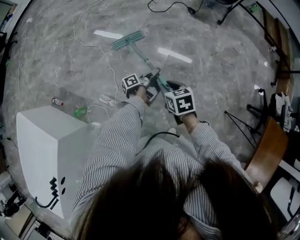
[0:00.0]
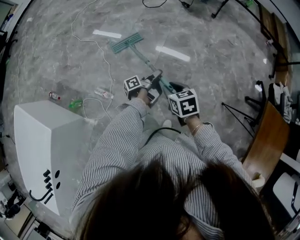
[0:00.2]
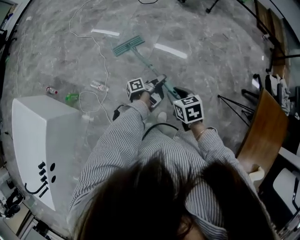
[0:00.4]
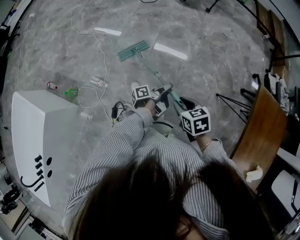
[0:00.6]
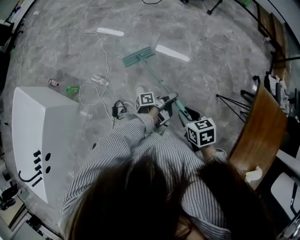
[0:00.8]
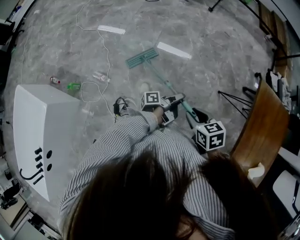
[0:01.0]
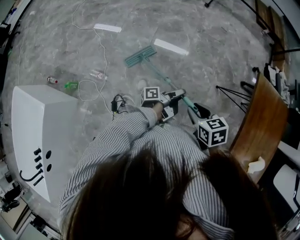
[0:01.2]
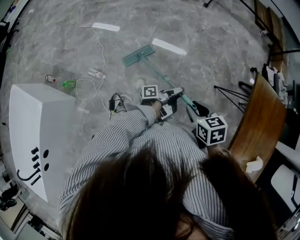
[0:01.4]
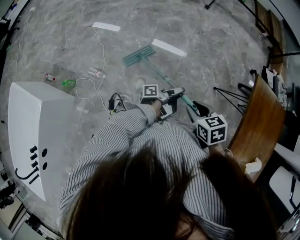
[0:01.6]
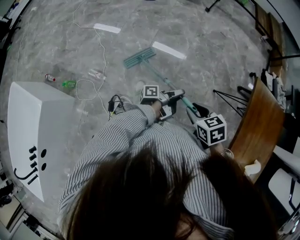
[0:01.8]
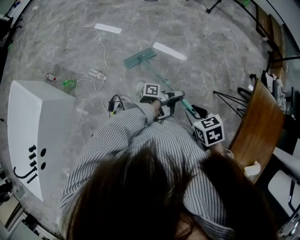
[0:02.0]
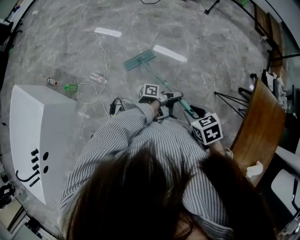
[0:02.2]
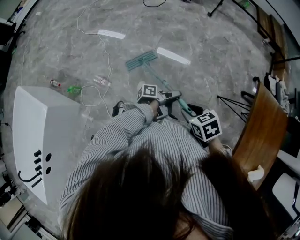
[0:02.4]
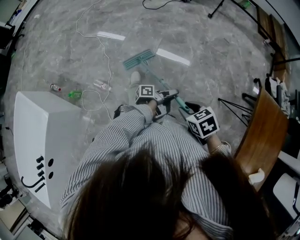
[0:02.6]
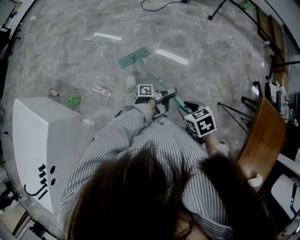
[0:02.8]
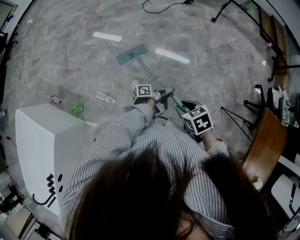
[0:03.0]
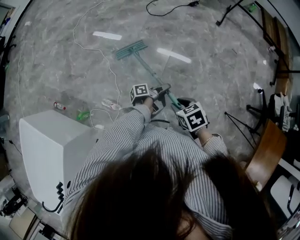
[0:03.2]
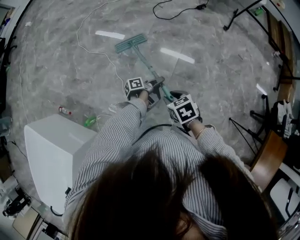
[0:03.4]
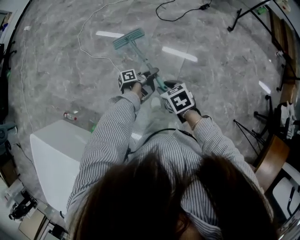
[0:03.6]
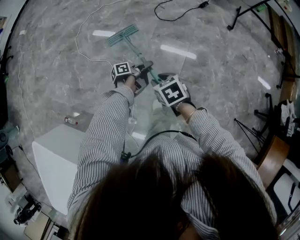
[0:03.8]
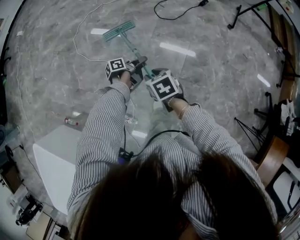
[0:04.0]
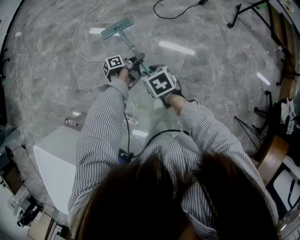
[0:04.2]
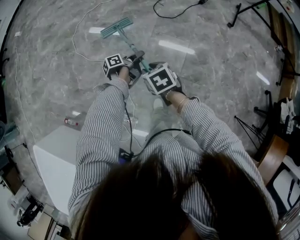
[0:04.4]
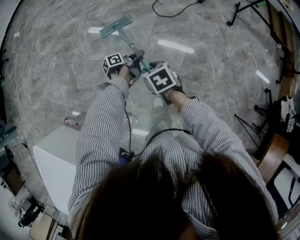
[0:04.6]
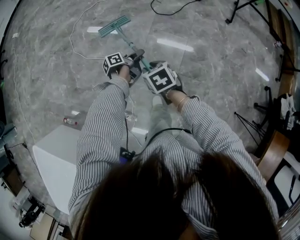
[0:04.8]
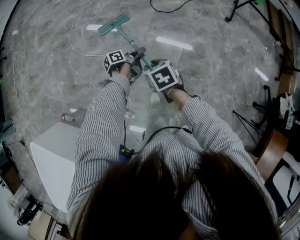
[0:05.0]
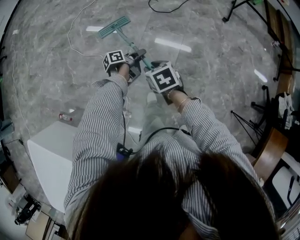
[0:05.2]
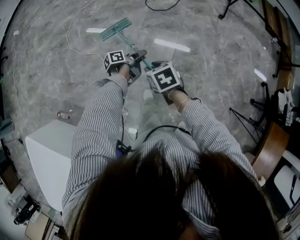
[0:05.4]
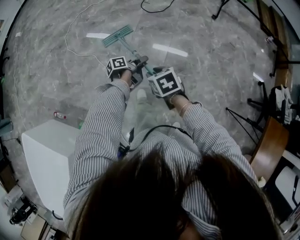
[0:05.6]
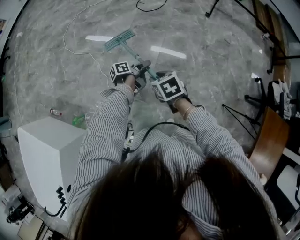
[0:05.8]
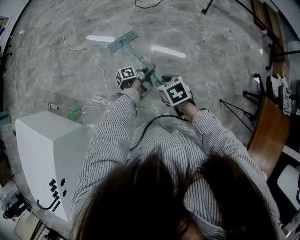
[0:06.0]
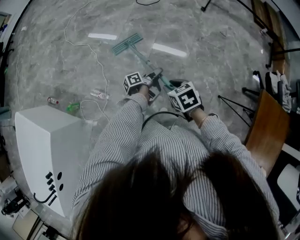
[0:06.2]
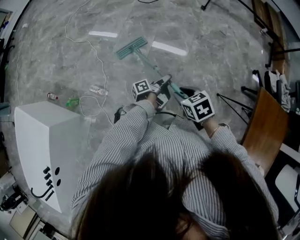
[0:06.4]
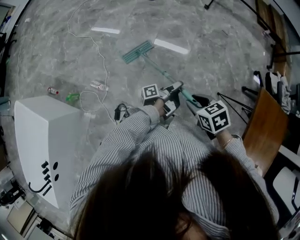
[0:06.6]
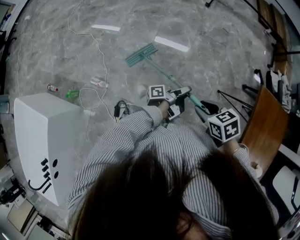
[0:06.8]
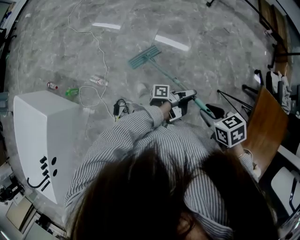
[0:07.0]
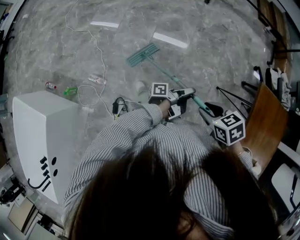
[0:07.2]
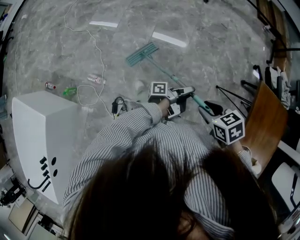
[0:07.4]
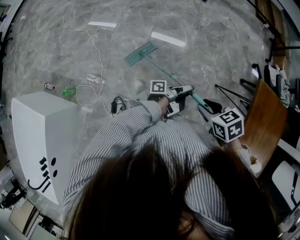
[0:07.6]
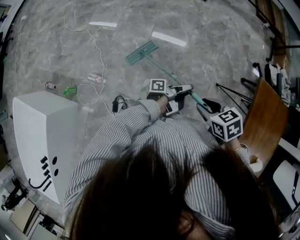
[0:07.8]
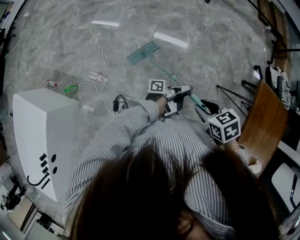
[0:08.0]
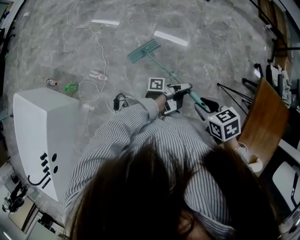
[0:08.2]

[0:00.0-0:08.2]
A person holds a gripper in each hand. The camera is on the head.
0:00.0 to 0:01.6: The right gripper moves approximately 50 cm.
0:01.6 to 0:03.2: The right gripper changes place by about 40 cm.
0:03.2 to 0:05.0: The right gripper changes place by about 40 cm.
0:05.0 to 0:06.6: The right gripper moves roughly 70 cm.
0:06.6 to 0:08.2: The right gripper changes place by about 10 cm.

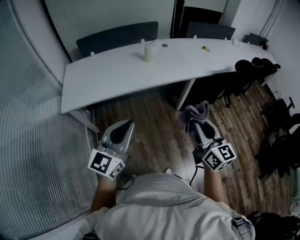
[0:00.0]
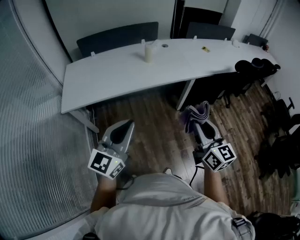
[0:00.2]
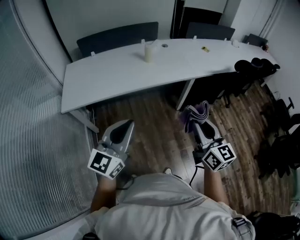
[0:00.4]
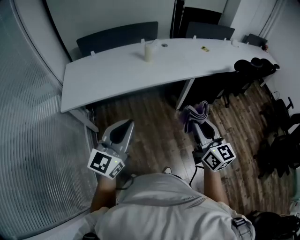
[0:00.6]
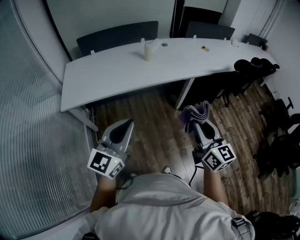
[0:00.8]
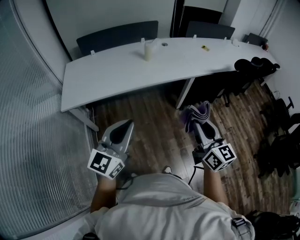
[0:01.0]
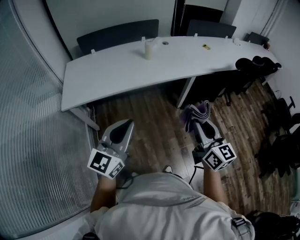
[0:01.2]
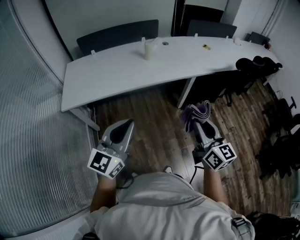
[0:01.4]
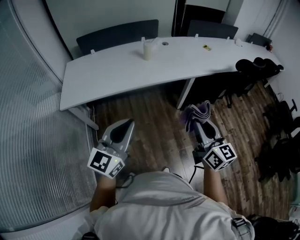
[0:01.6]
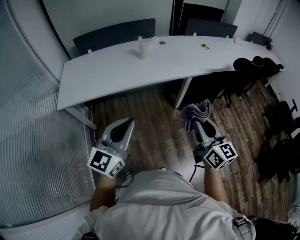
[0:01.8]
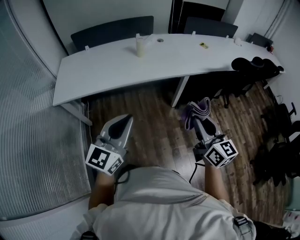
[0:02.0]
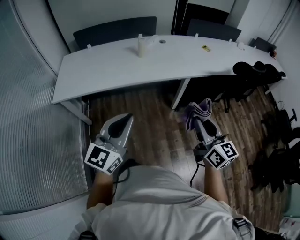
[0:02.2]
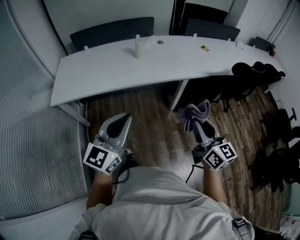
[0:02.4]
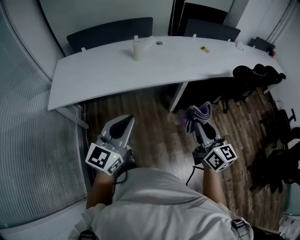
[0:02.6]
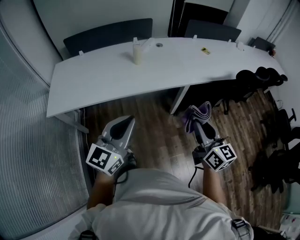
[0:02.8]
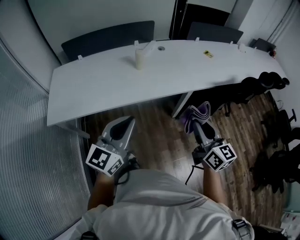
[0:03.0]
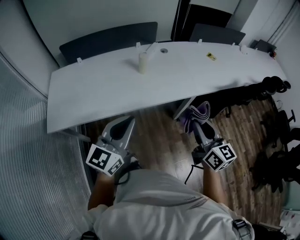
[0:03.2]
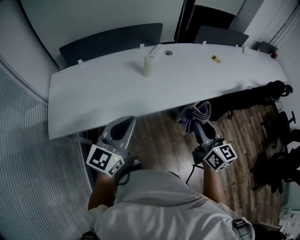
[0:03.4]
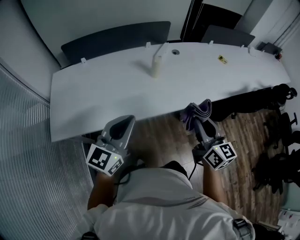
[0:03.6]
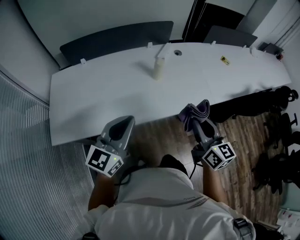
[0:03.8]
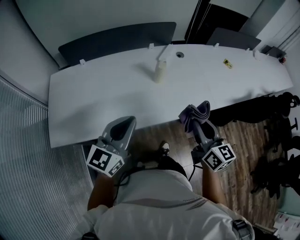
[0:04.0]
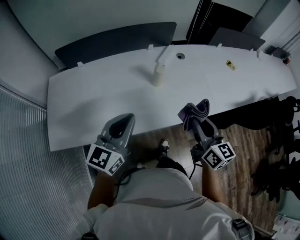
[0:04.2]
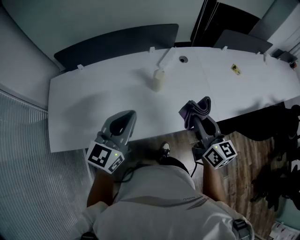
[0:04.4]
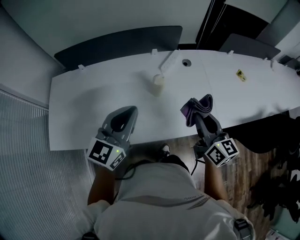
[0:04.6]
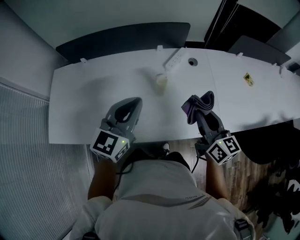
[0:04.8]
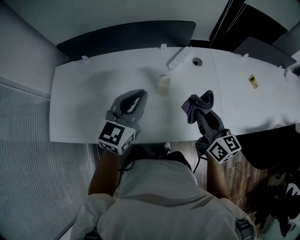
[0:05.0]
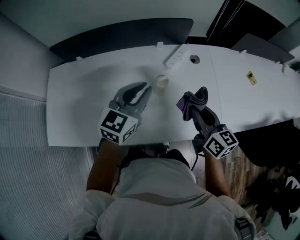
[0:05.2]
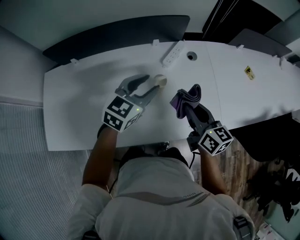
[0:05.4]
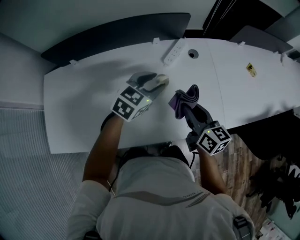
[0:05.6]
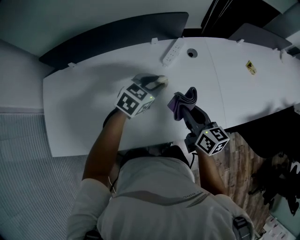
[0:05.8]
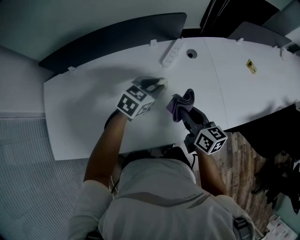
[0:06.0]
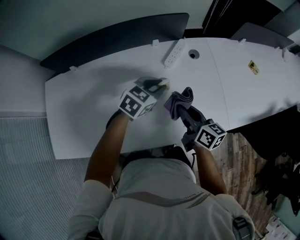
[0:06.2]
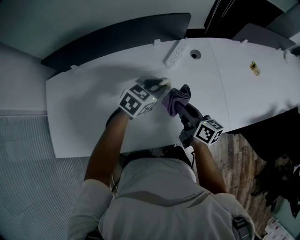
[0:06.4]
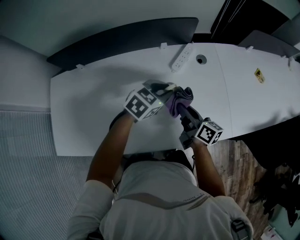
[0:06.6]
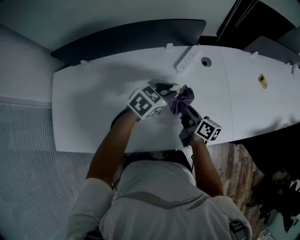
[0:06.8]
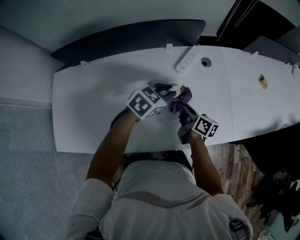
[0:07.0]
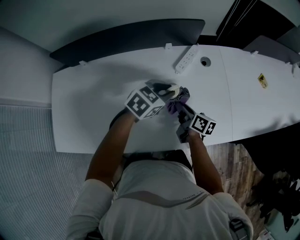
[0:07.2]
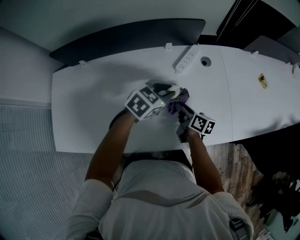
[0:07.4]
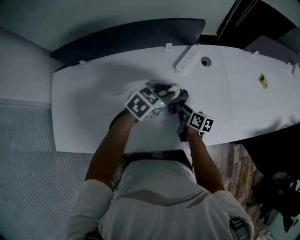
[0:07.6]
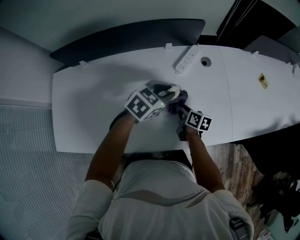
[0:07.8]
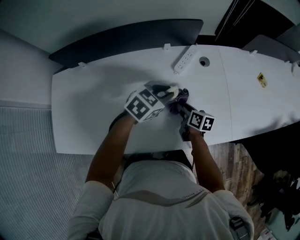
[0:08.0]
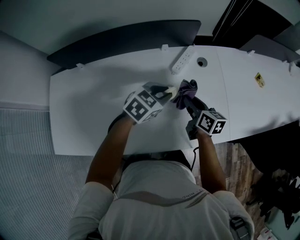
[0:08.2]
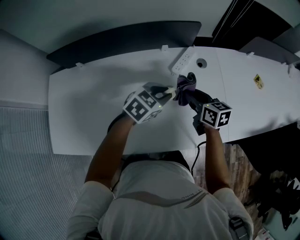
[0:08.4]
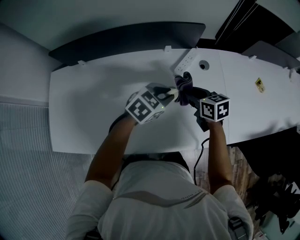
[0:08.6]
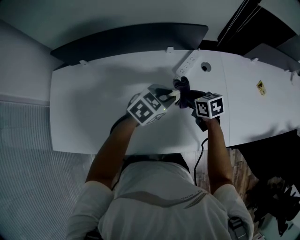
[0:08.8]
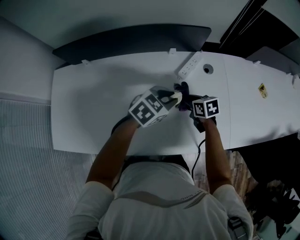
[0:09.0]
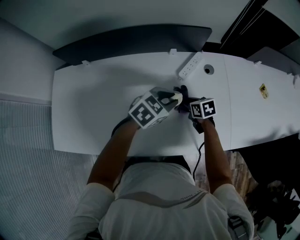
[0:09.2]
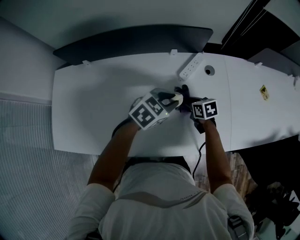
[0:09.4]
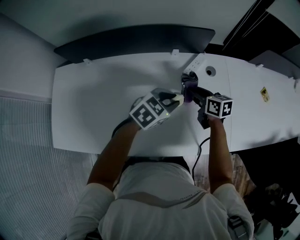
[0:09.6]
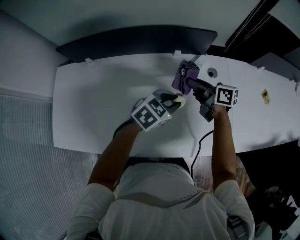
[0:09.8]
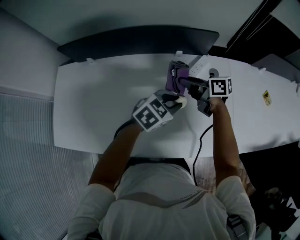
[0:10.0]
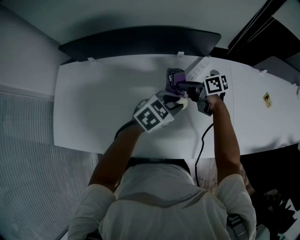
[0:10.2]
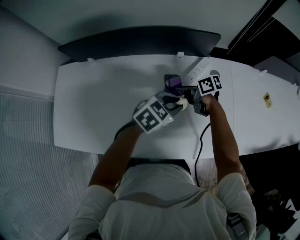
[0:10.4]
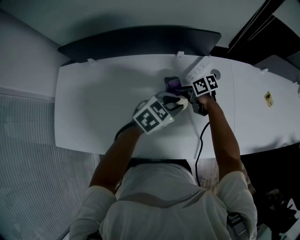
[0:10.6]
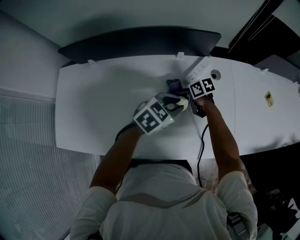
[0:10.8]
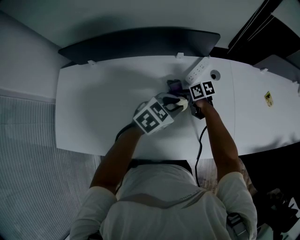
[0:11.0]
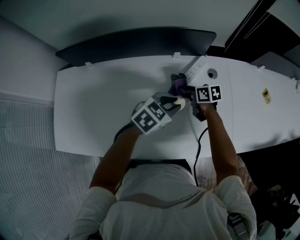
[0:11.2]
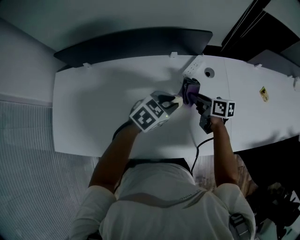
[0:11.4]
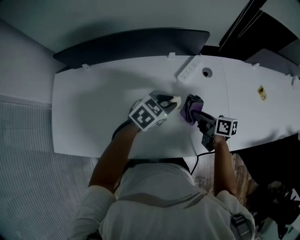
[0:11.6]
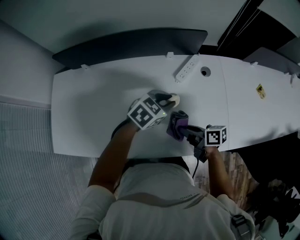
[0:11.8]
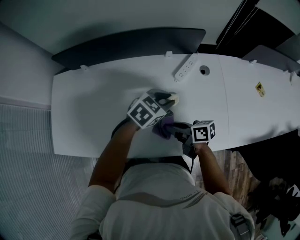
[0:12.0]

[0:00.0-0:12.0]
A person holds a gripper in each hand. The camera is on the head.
0:00.0 to 0:01.6: The grippers make only small movements.
0:01.6 to 0:03.0: Both grippers move forward, about 20 cm.
0:03.0 to 0:04.4: The two grippers go some 35 cm forward.
0:04.4 to 0:06.0: The left gripper travels forward and downward by roughly 30 cm, angles its fingers downward, by some 30 degrees, and opens its fingers. The right gripper moves forward and downward, approximately 20 cm, and changes its angle by approximately 20 degrees.
0:06.0 to 0:07.6: The right gripper heads downward, forward and to the left, covering roughly 15 cm, and swivels approximately 20 degrees.
0:07.6 to 0:09.0: The right gripper heads forward, covering about 5 cm, travels upward and back again, roughly 10 cm each way, and turns by roughly 40 degrees.
0:09.0 to 0:10.4: The right gripper moves roughly 10 cm upward and comes back, and changes its angle by some 30 degrees.
0:10.4 to 0:12.0: The right gripper shifts by some 20 cm.

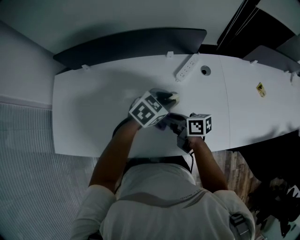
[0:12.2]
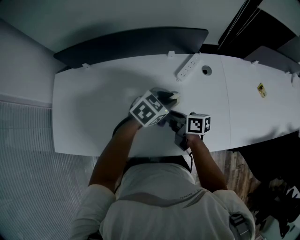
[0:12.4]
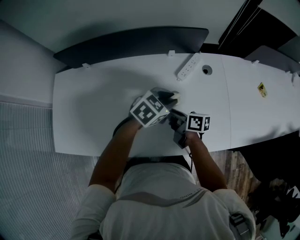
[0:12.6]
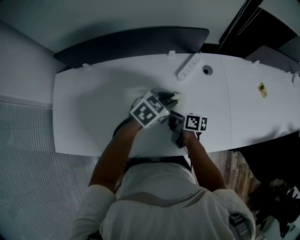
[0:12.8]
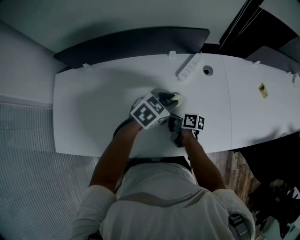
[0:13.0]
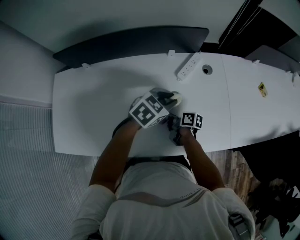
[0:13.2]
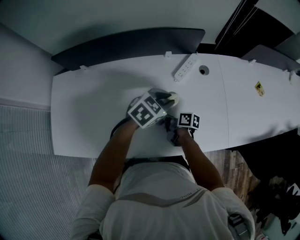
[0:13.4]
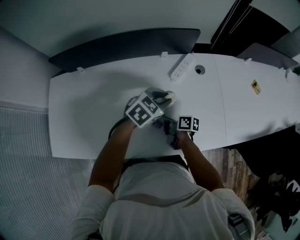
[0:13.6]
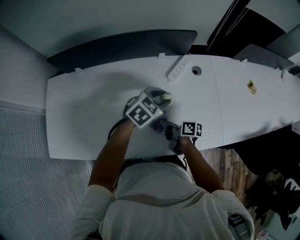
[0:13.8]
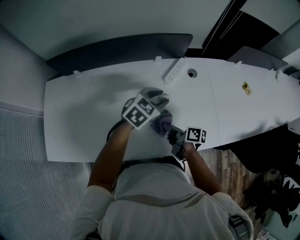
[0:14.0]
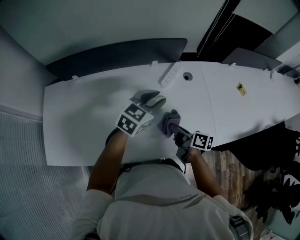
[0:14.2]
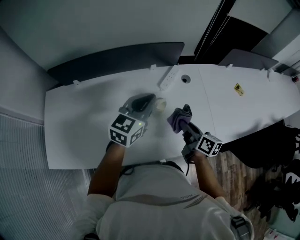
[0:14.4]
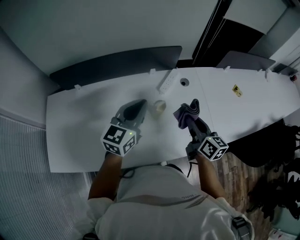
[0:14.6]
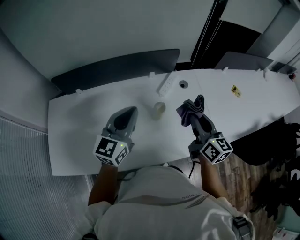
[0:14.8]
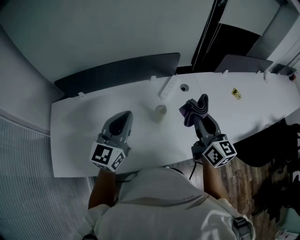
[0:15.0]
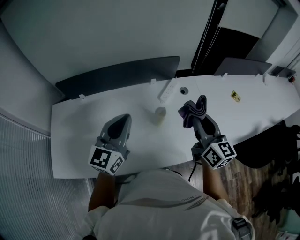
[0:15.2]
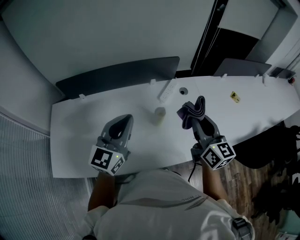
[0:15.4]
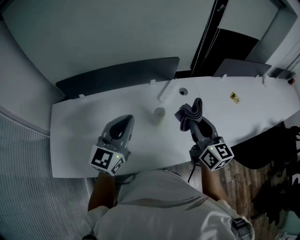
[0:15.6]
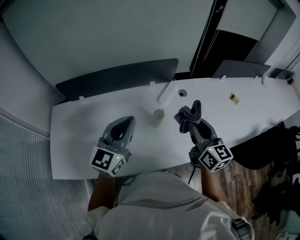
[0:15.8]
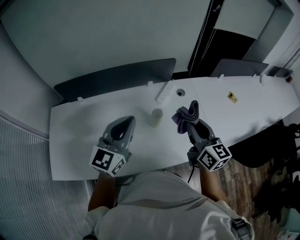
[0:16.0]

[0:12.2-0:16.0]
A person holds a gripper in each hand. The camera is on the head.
0:12.2 to 0:13.4: The right gripper heads downward, covering about 10 cm, and turns by approximately 30 degrees.
0:13.4 to 0:14.8: The right gripper is displaced upward and to the right by roughly 35 cm, and changes its angle by roughly 60 degrees; the left gripper travels upward, to the left and backward by roughly 25 cm, angles its fingers upward, by some 40 degrees, and closes its fingers.
0:14.8 to 0:16.0: The left gripper moves some 5 cm.
